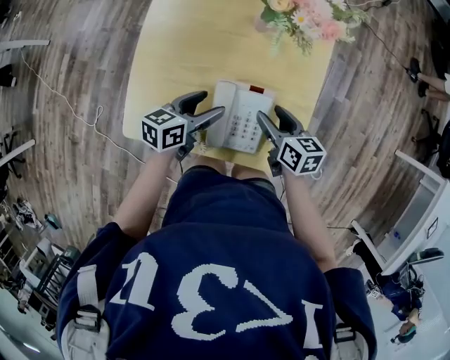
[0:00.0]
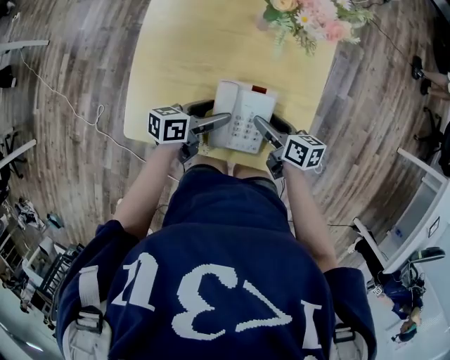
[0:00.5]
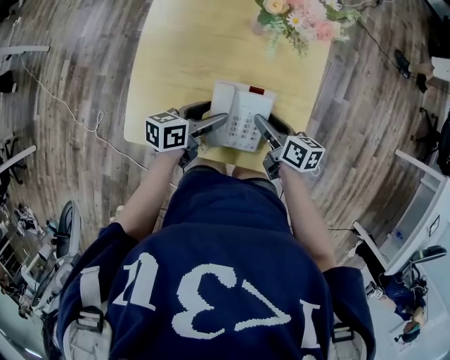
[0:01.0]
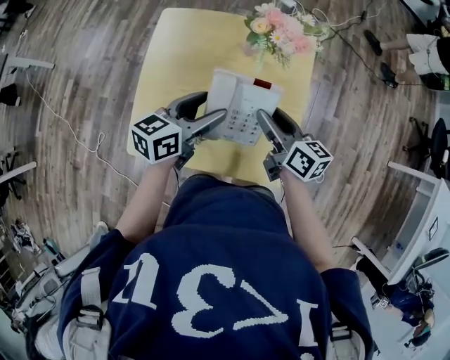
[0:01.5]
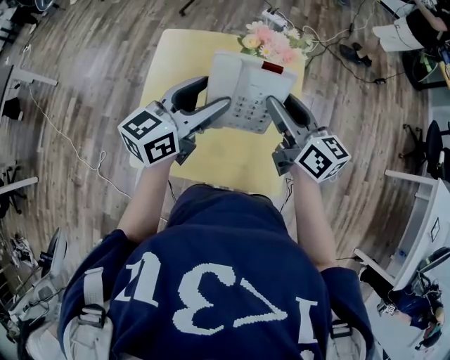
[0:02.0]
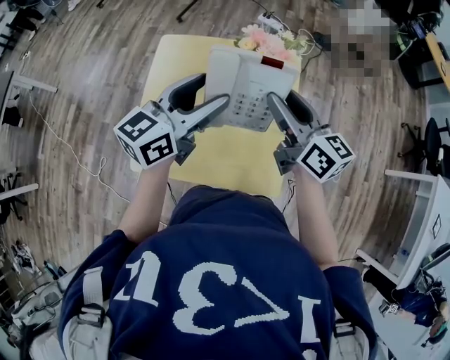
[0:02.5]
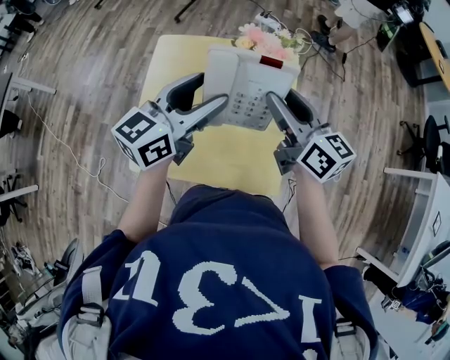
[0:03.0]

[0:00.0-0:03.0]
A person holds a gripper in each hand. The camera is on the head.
0:00.0 to 0:01.5: The two grippers go approximately 10 cm upward.
0:01.5 to 0:03.0: The two grippers go roughly 15 cm upward. The left gripper turns by about 20 degrees.

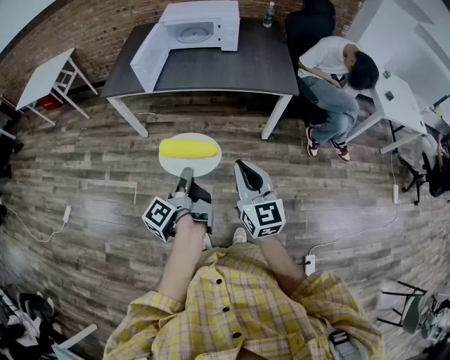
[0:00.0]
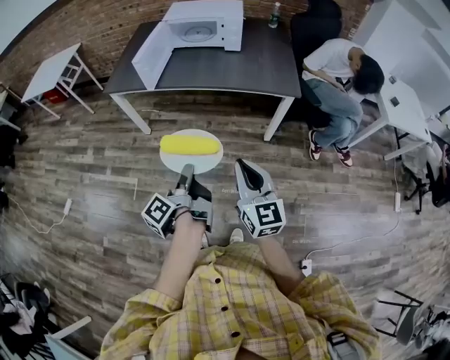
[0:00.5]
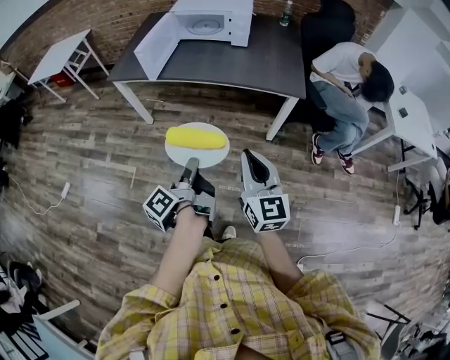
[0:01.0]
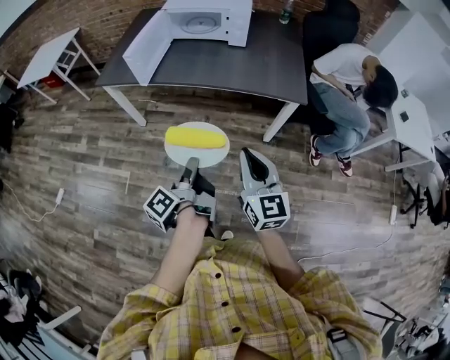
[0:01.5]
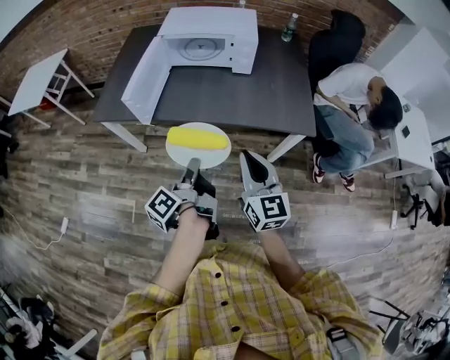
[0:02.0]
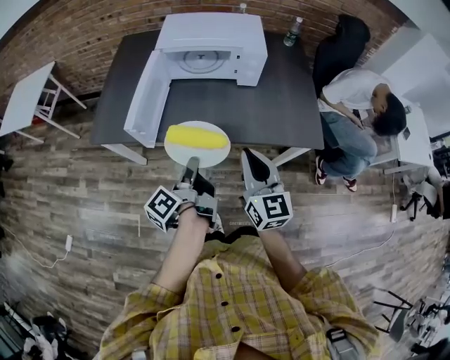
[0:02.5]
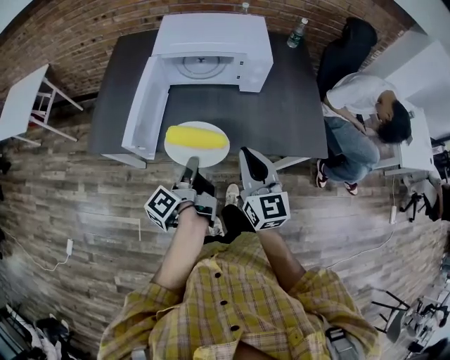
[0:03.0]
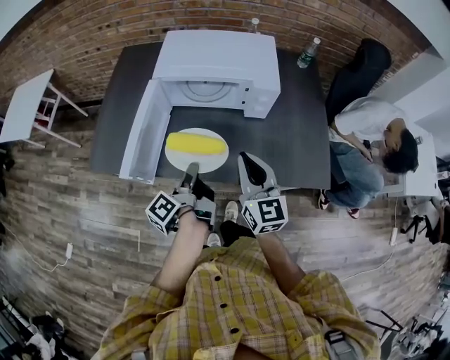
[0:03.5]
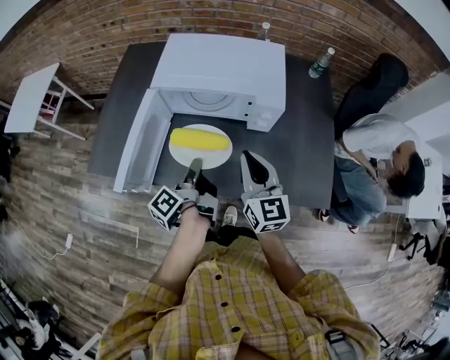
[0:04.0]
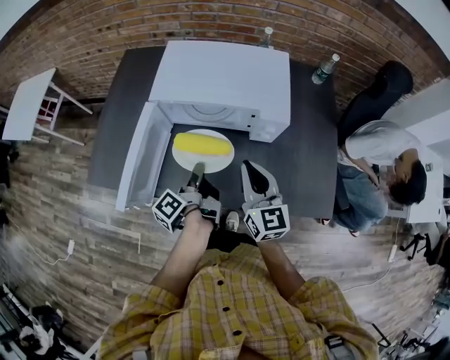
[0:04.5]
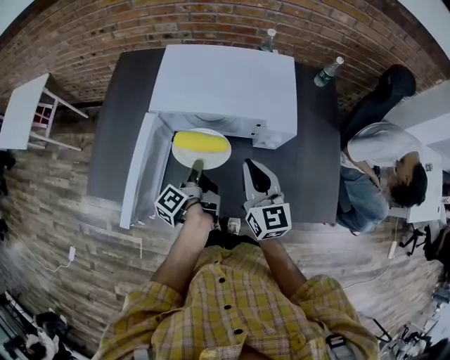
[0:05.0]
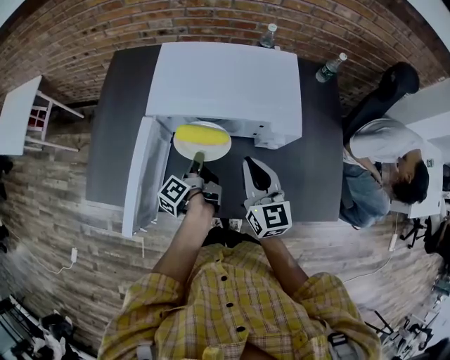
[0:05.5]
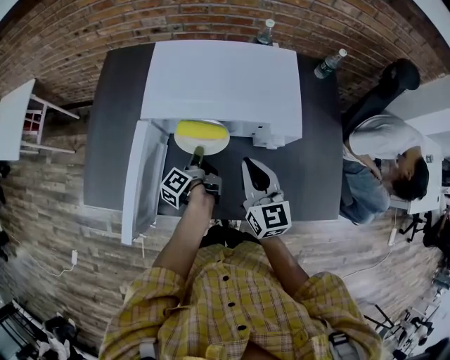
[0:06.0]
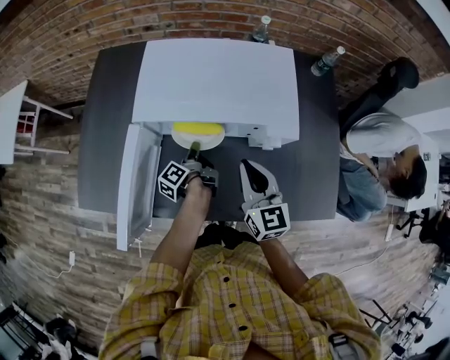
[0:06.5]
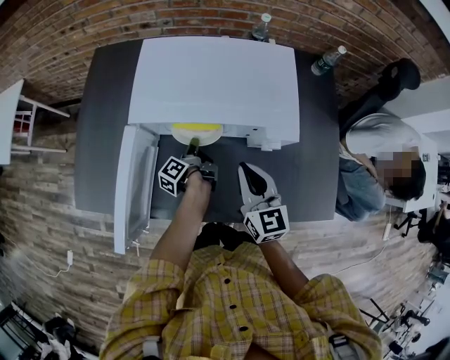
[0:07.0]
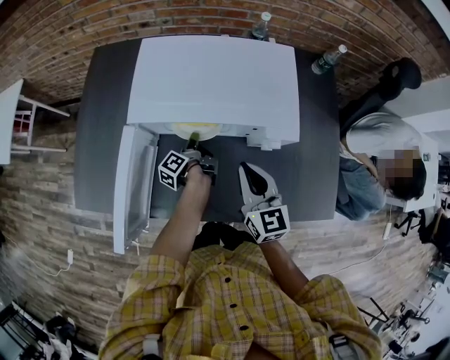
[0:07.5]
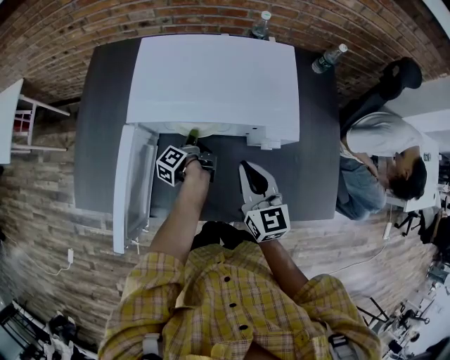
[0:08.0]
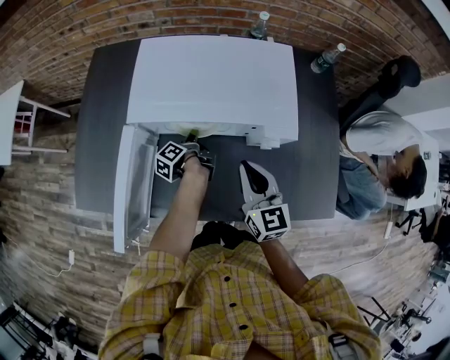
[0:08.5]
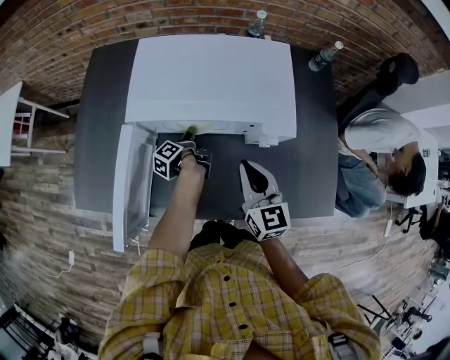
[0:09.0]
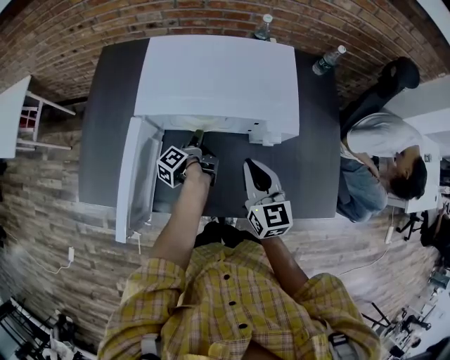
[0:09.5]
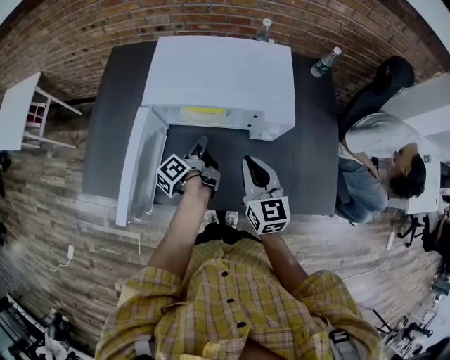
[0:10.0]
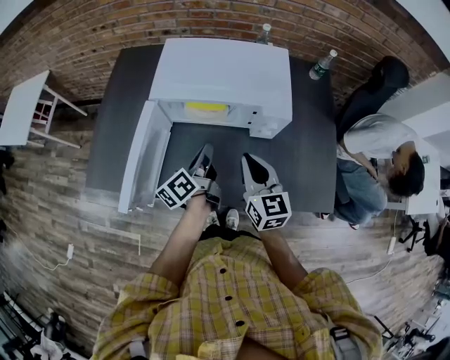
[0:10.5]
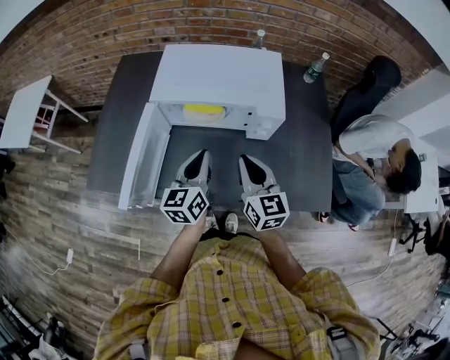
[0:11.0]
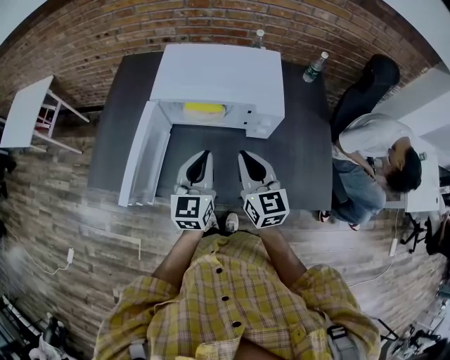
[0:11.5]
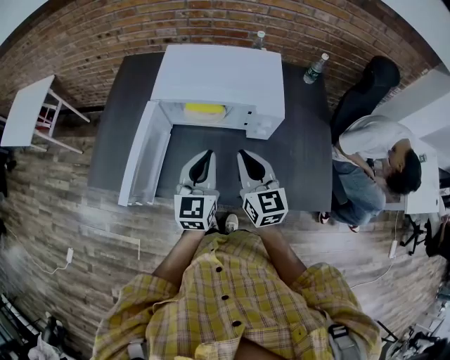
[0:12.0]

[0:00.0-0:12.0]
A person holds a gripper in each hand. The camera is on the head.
0:00.0 to 0:02.0: The right gripper ends up some 30 cm from where it was.
0:02.0 to 0:04.0: The right gripper shifts by approximately 35 cm.
0:04.0 to 0:06.0: The right gripper shifts by approximately 10 cm.
0:10.0 to 0:12.0: The right gripper changes place by about 5 cm.

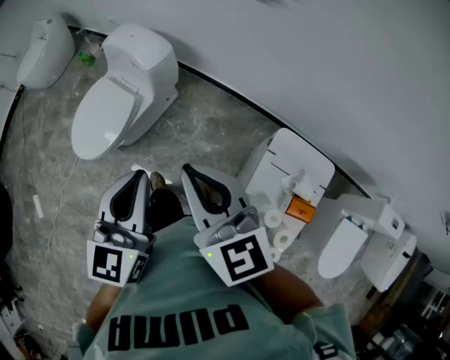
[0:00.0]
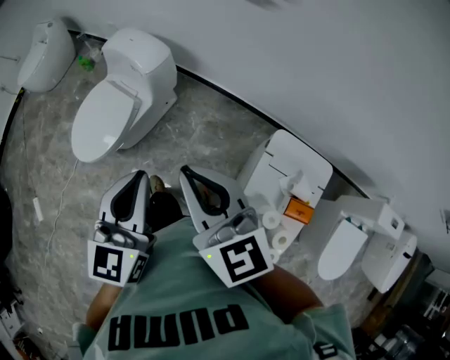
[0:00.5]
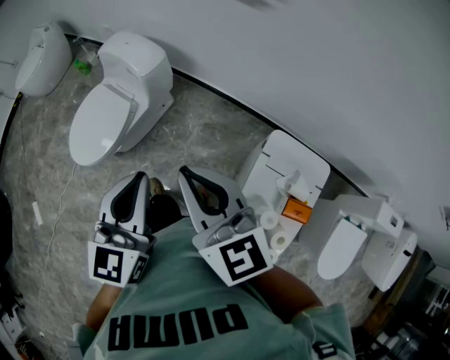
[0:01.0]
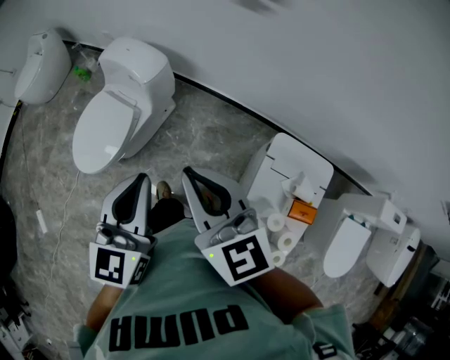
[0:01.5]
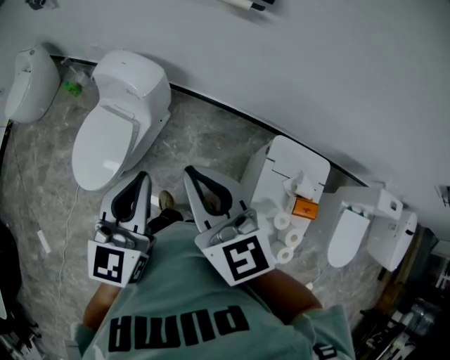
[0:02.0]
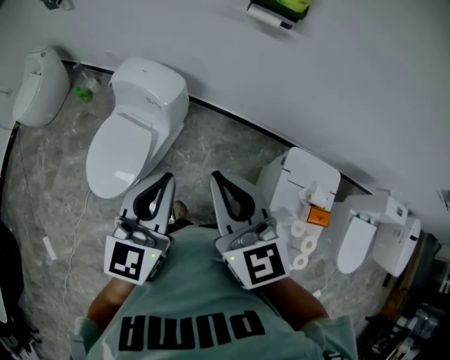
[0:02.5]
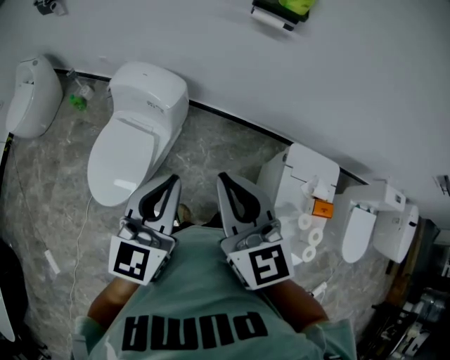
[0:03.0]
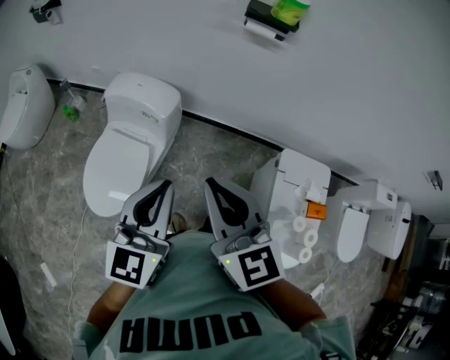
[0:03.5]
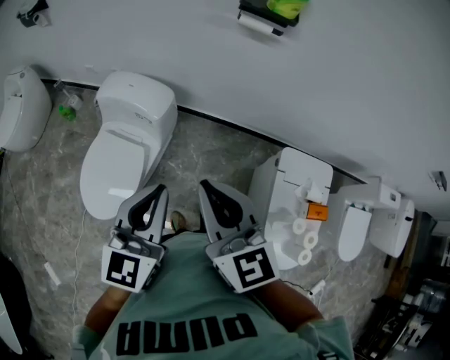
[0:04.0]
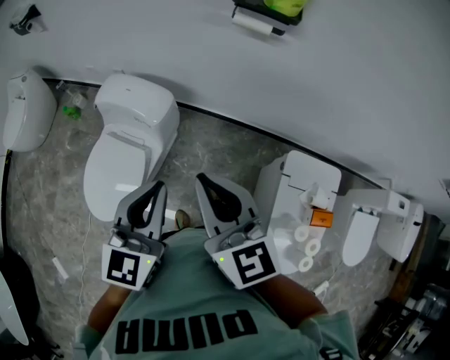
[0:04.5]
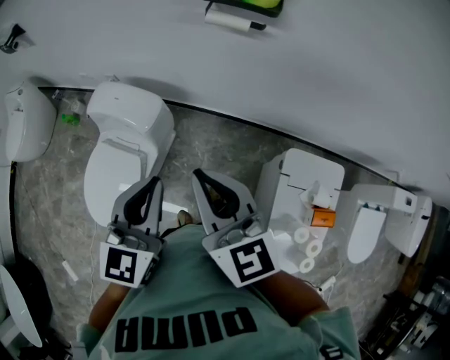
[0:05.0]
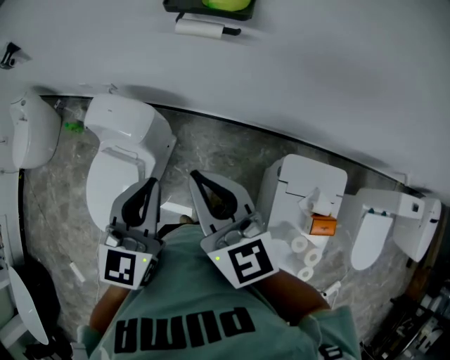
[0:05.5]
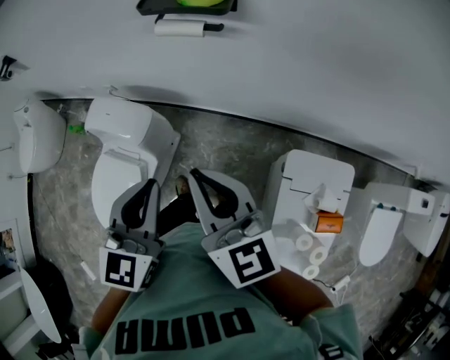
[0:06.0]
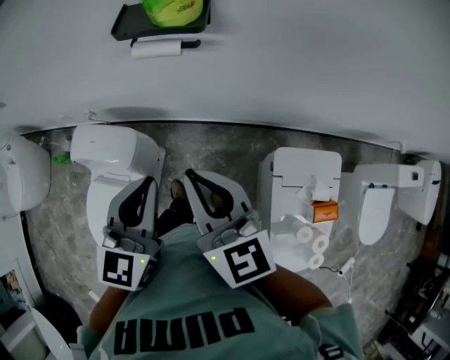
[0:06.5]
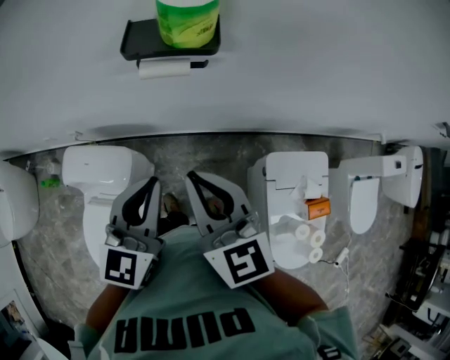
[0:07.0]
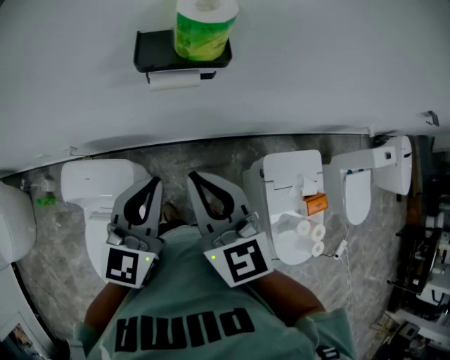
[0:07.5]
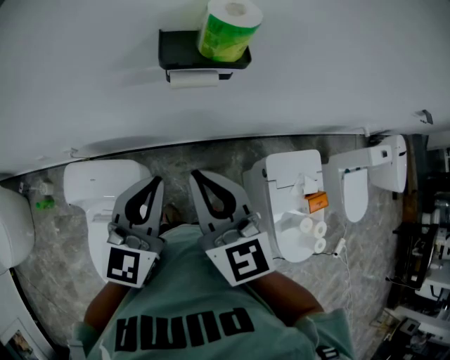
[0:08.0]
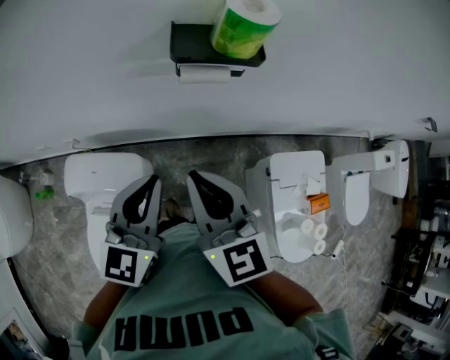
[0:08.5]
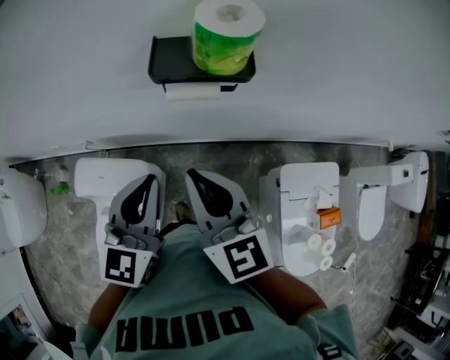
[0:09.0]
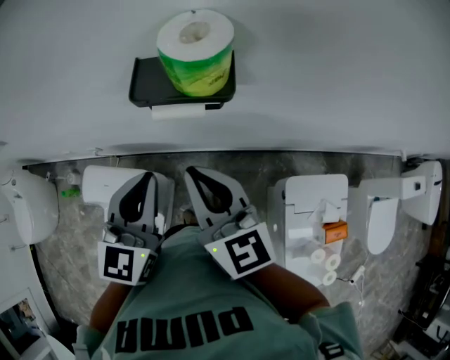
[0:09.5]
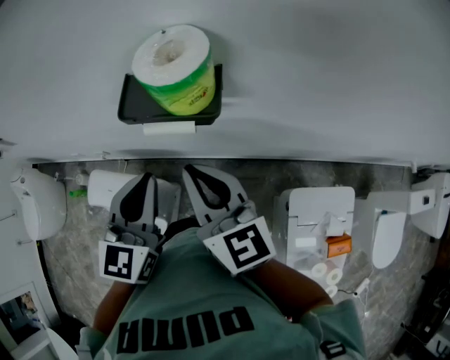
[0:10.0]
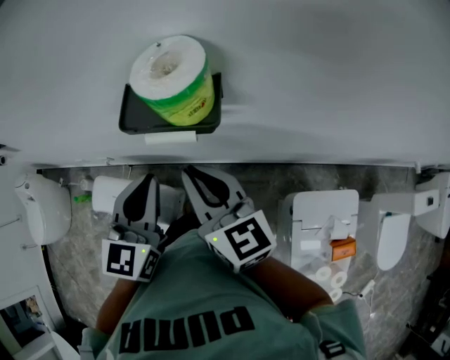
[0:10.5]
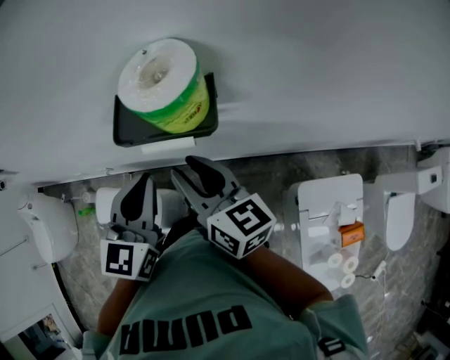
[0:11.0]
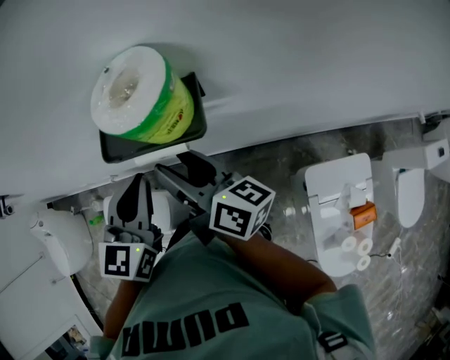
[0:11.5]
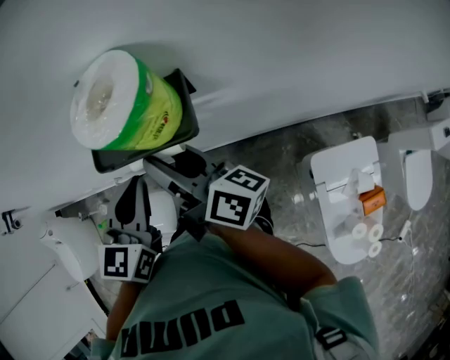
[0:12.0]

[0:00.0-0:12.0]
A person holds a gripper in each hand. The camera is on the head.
0:00.0 to 0:02.0: The right gripper changes place by about 10 cm. Meanwhile the left gripper goes approximately 5 cm forward and to the left.
0:02.0 to 0:04.0: Both grippers travel together to the left, about 10 cm.
0:04.0 to 0:06.0: Both grippers move forward and to the right, roughly 25 cm.
0:06.0 to 0:08.0: The left gripper is displaced forward and to the left by about 15 cm, and rotates about 30 degrees; the right gripper heads to the left and forward, covering approximately 15 cm, and swivels about 30 degrees.
0:08.0 to 0:10.0: Both grippers move forward and to the right, approximately 15 cm. The right gripper swivels about 20 degrees.
0:10.0 to 0:12.0: The grippers both shift forward by roughly 10 cm. The right gripper rolls clockwise, seen from behind, by roughly 50 degrees, and opens.
